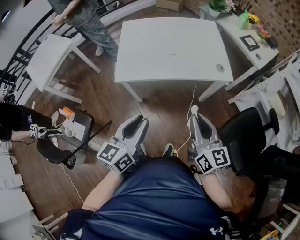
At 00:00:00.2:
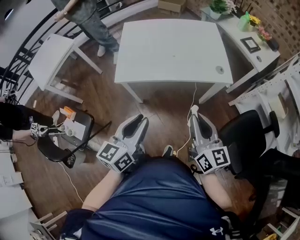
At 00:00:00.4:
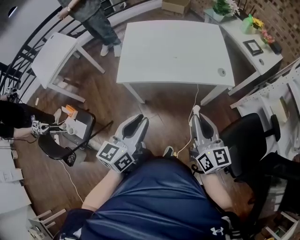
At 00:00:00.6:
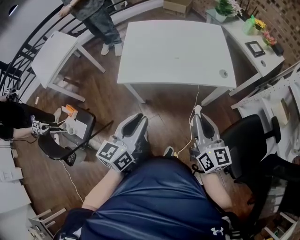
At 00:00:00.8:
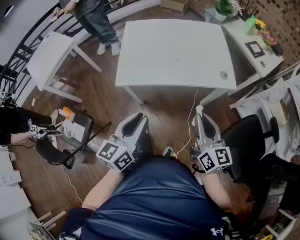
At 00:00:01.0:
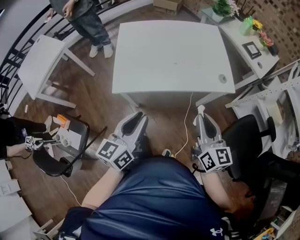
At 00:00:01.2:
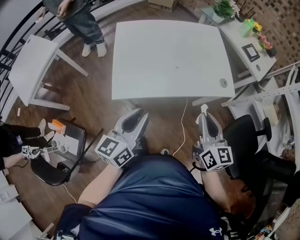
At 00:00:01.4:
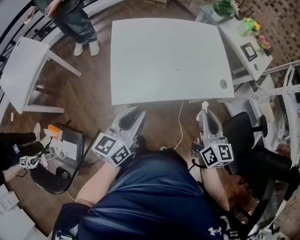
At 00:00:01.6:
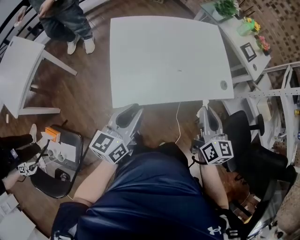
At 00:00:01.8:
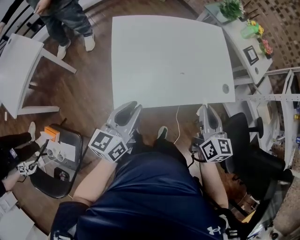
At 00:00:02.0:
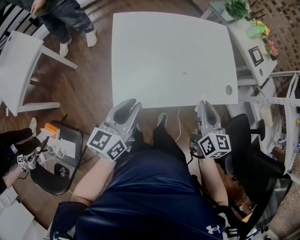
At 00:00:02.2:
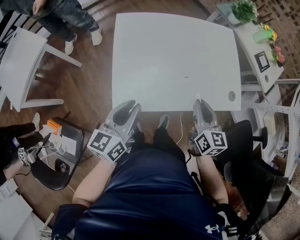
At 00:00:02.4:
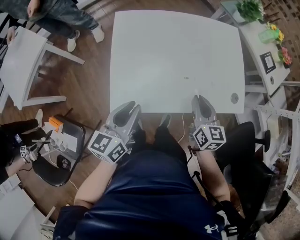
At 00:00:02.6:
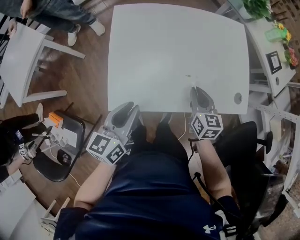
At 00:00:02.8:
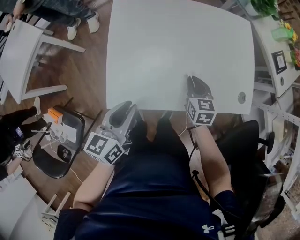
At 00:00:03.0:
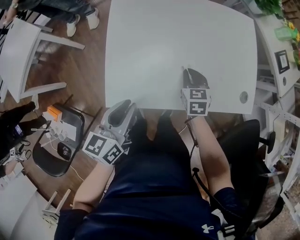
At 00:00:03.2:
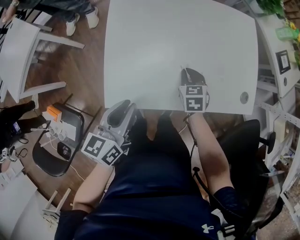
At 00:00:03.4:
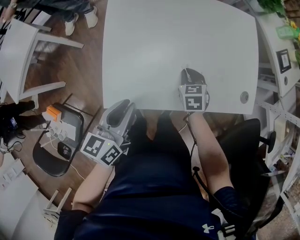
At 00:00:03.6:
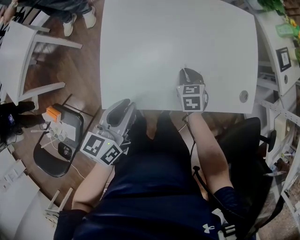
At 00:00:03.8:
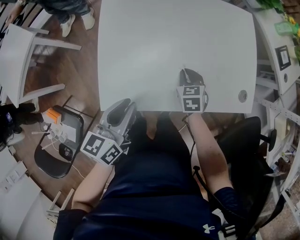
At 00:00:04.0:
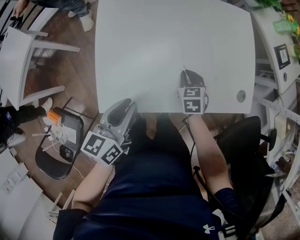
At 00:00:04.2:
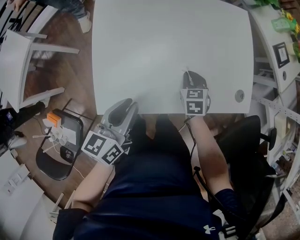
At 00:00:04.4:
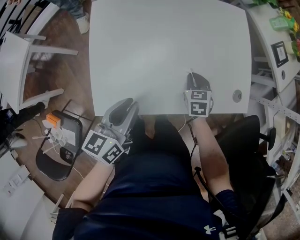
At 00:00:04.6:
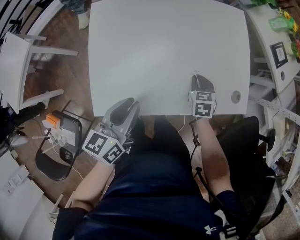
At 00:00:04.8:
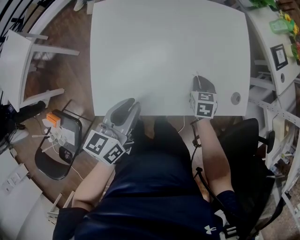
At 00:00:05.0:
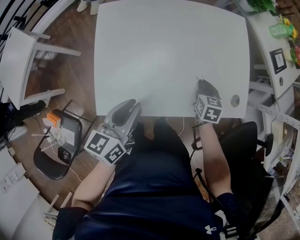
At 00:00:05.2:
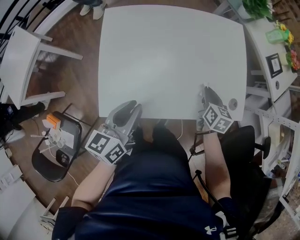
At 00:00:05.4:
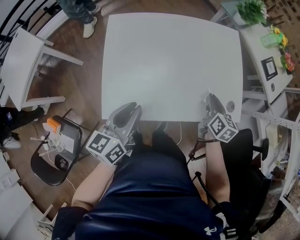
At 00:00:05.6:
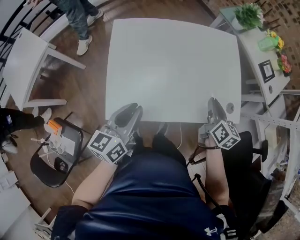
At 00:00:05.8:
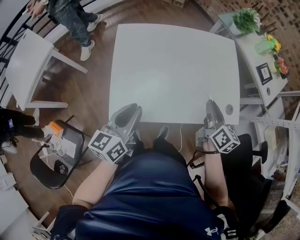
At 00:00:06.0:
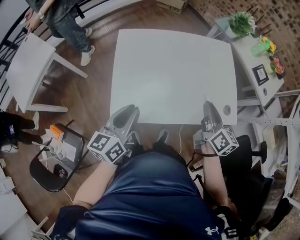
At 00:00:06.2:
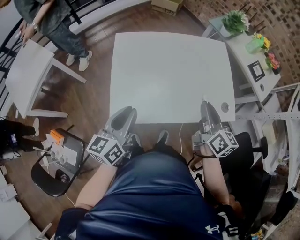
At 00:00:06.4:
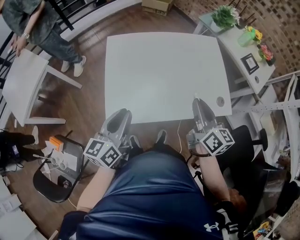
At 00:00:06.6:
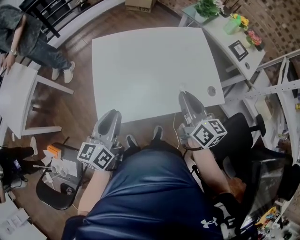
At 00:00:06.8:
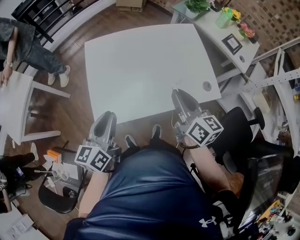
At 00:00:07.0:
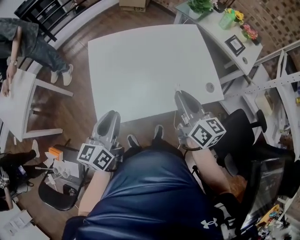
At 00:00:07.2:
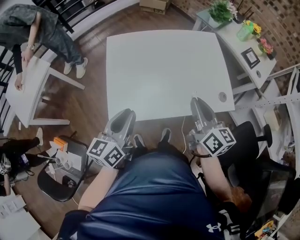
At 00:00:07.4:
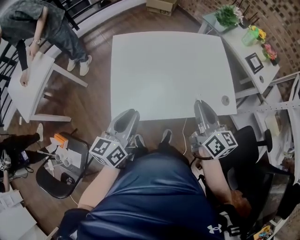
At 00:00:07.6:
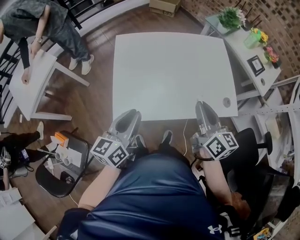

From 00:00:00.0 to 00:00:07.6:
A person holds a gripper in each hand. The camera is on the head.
From 00:00:00.0 to 00:00:01.6: The left gripper travels forward and to the left by some 25 cm. The right gripper travels forward by approximately 20 cm, and swivels roughly 20 degrees.
From 00:00:01.6 to 00:00:03.0: The right gripper moves downward and forward, approximately 30 cm, and tilts its fingers approximately 30 degrees downward; the left gripper goes about 10 cm downward and forward.
From 00:00:03.0 to 00:00:04.6: The right gripper heads to the right, covering approximately 10 cm, while the left gripper heads to the right and forward, covering some 10 cm.
From 00:00:04.6 to 00:00:06.0: The right gripper is displaced upward by some 25 cm, and tips its fingers upward by about 40 degrees; the left gripper is displaced upward, to the left and backward by about 10 cm.
From 00:00:06.0 to 00:00:07.6: The right gripper heads backward, covering some 5 cm.

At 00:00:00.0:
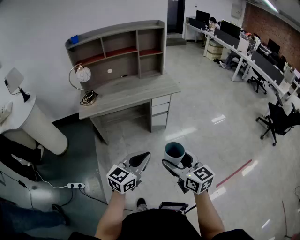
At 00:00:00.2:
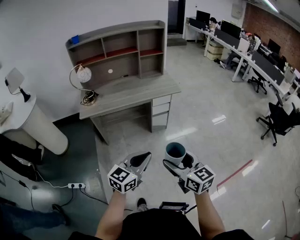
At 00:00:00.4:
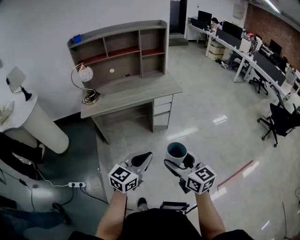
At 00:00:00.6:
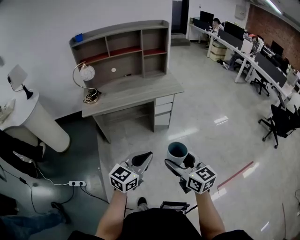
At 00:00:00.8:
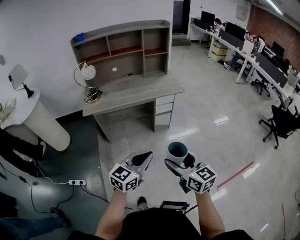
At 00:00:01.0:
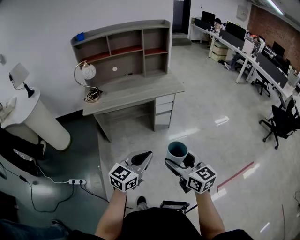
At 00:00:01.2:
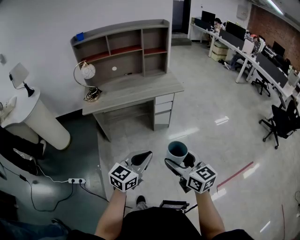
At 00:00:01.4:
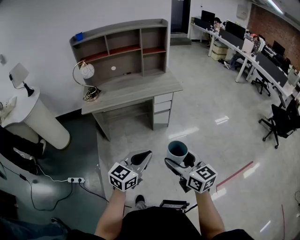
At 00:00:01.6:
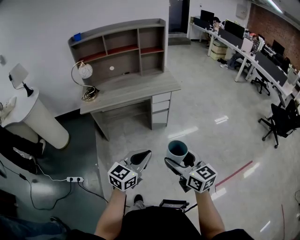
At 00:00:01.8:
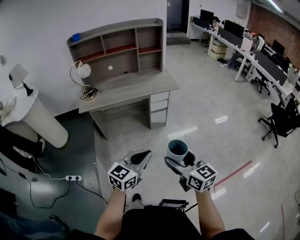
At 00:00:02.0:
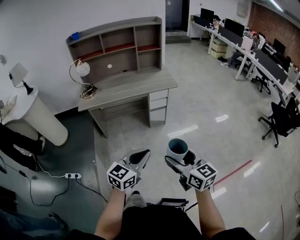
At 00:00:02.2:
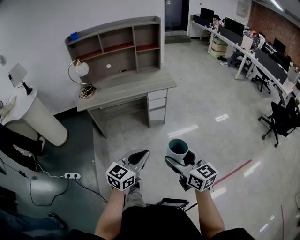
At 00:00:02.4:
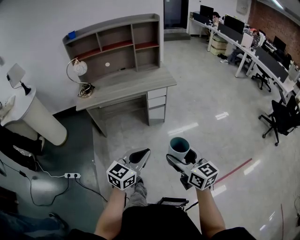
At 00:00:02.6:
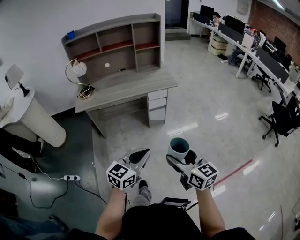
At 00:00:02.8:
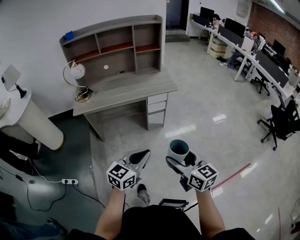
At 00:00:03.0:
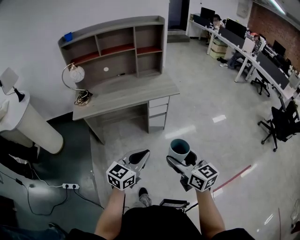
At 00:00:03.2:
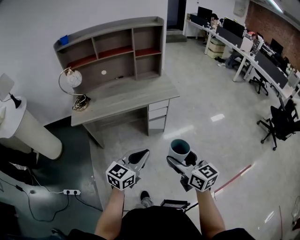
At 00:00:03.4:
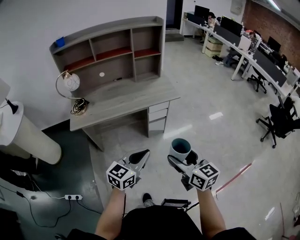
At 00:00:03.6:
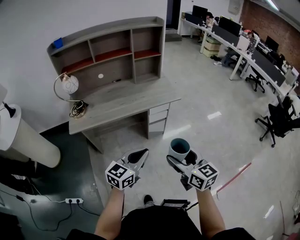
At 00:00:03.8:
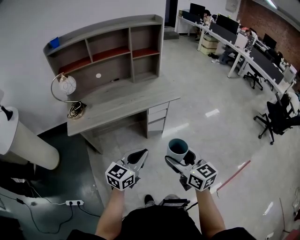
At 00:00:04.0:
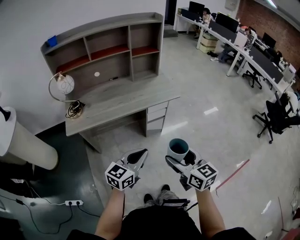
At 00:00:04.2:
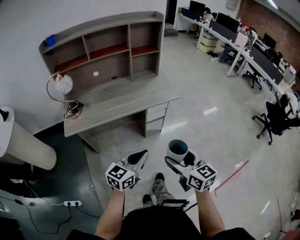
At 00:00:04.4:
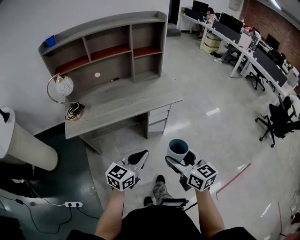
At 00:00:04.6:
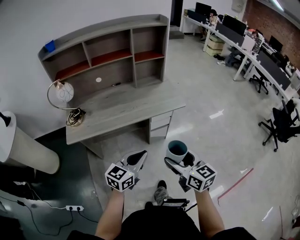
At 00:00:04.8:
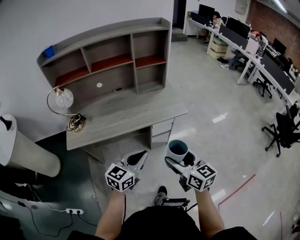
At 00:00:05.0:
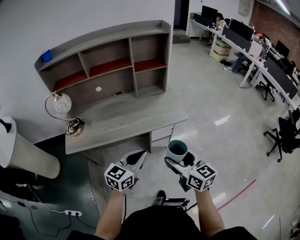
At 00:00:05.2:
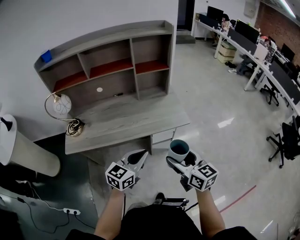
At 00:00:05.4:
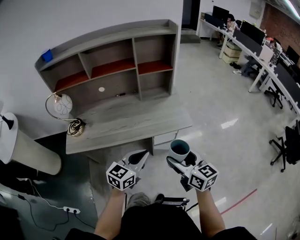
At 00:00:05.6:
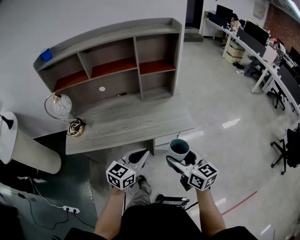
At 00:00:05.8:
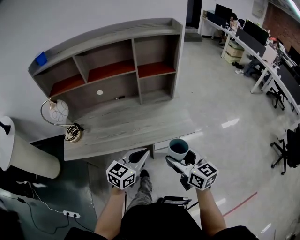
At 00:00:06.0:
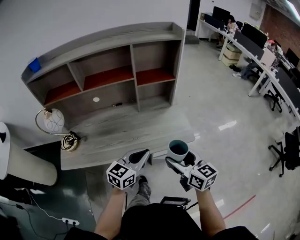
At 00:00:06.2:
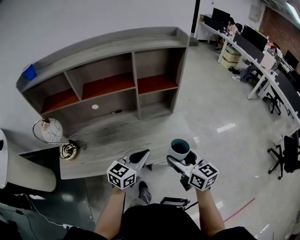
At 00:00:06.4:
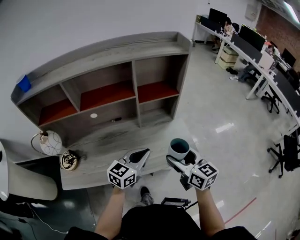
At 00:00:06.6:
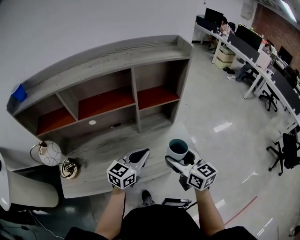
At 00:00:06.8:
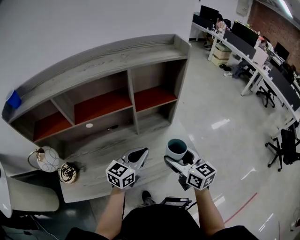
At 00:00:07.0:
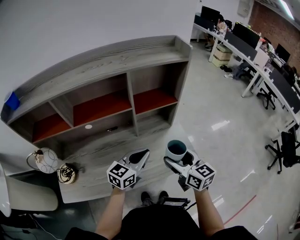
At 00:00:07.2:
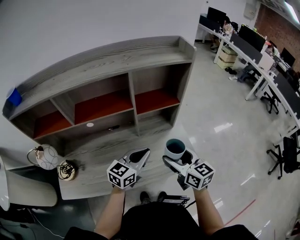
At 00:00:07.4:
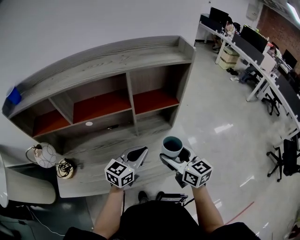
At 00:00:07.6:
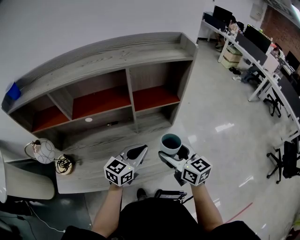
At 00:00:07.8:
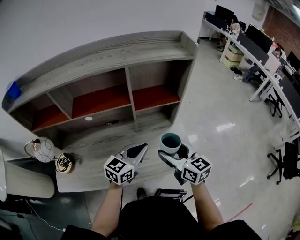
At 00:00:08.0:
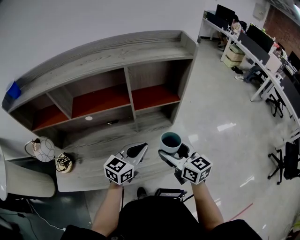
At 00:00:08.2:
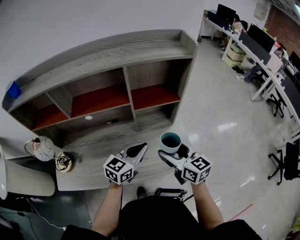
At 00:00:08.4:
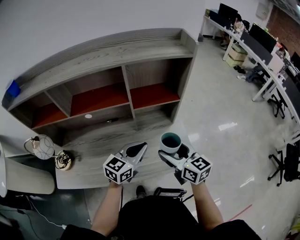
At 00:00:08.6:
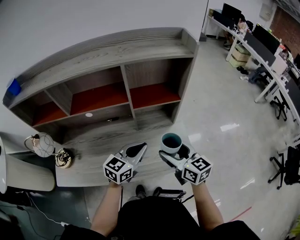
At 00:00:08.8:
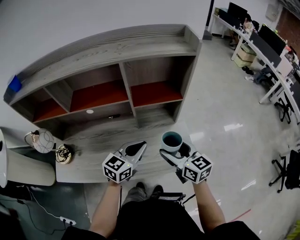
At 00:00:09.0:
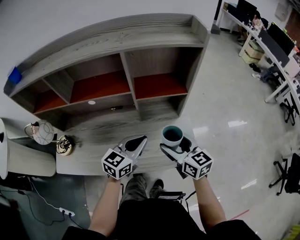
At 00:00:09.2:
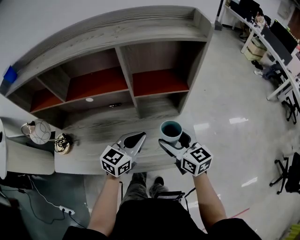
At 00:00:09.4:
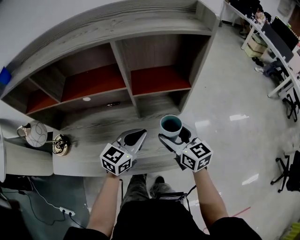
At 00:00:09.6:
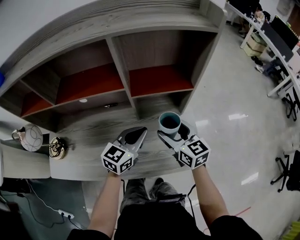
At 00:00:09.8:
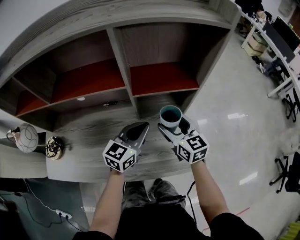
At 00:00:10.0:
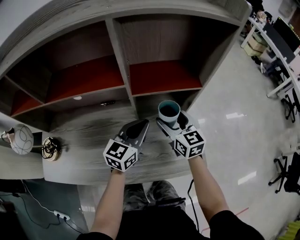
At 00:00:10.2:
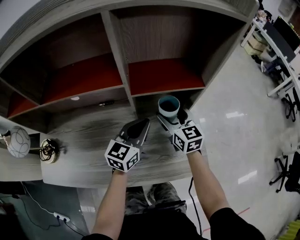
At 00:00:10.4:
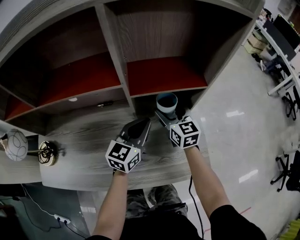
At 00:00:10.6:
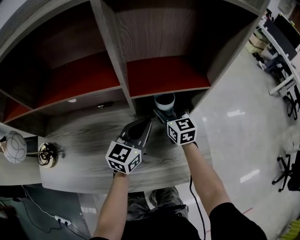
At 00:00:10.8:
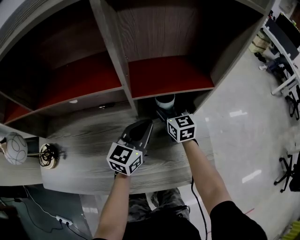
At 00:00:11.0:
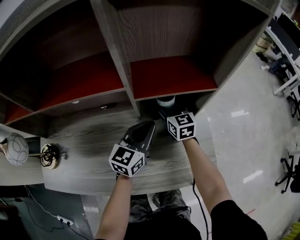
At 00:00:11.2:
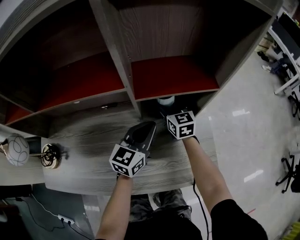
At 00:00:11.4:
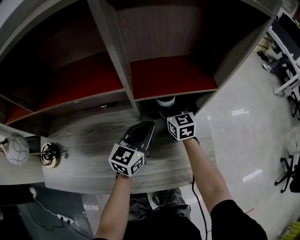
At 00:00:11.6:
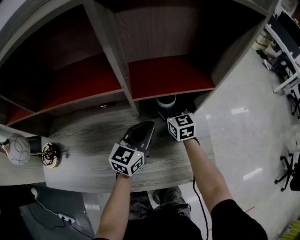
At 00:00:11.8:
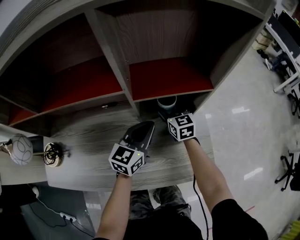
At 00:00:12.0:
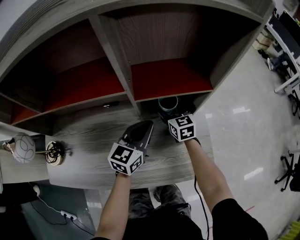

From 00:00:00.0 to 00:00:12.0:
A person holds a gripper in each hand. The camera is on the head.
From 00:00:00.0 to 00:00:01.6: The grippers move only a little.
From 00:00:01.6 to 00:00:03.0: Both grippers travel together forward, some 10 cm.
From 00:00:03.0 to 00:00:04.4: Both grippers travel together forward and to the left, approximately 15 cm.
From 00:00:04.4 to 00:00:06.0: Both grippers move forward, about 30 cm.
From 00:00:06.0 to 00:00:07.6: Both grippers travel together forward, approximately 20 cm.
From 00:00:07.6 to 00:00:09.0: The right gripper moves roughly 5 cm.
From 00:00:09.0 to 00:00:10.4: The left gripper is displaced forward and downward by roughly 15 cm. Meanwhile the right gripper is displaced forward and downward by about 25 cm.
From 00:00:10.4 to 00:00:12.0: The right gripper is displaced downward by roughly 5 cm.

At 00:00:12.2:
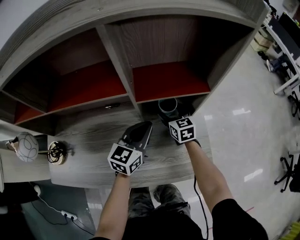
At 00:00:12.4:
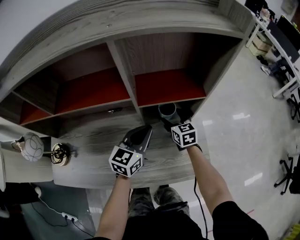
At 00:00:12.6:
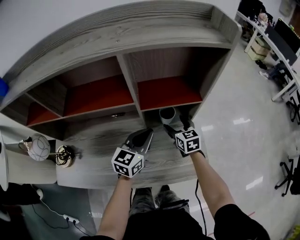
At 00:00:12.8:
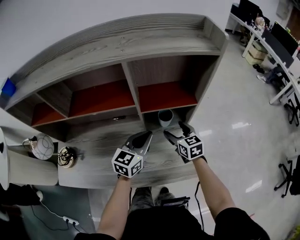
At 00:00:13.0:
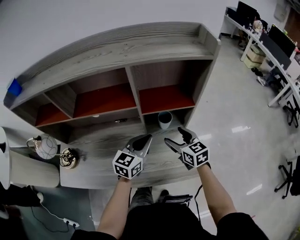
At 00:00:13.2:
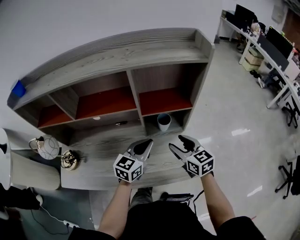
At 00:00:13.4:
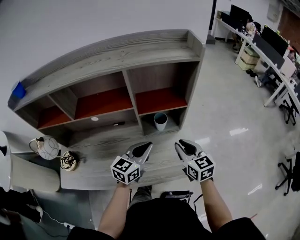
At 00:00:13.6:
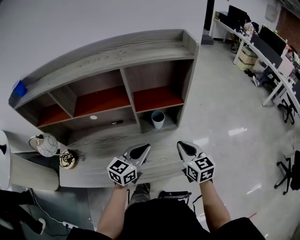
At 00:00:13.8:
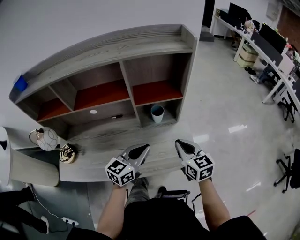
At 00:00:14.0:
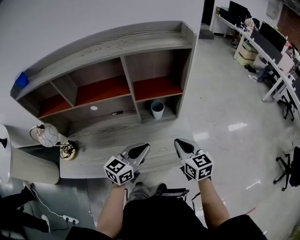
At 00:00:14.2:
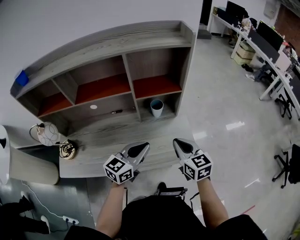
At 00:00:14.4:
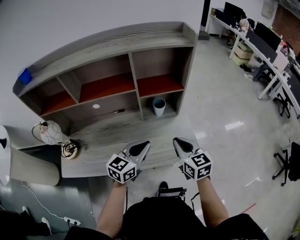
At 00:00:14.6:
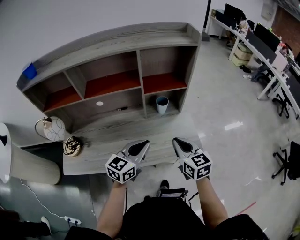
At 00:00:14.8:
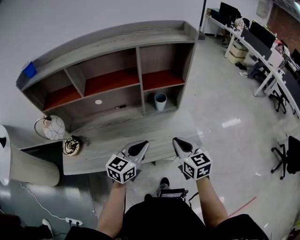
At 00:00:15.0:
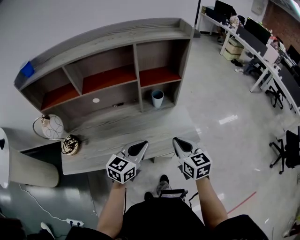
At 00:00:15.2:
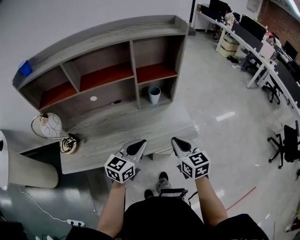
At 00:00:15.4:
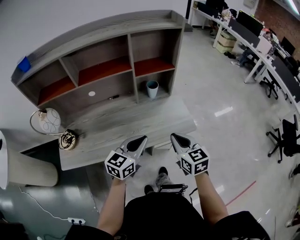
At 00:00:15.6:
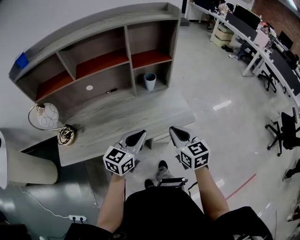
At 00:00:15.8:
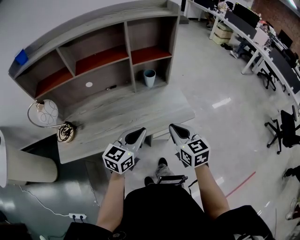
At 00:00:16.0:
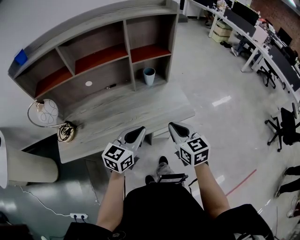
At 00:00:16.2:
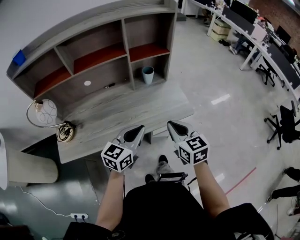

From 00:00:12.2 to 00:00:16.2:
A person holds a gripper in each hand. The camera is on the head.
From 00:00:12.2 to 00:00:13.6: The right gripper is displaced backward, upward and to the right by some 30 cm, and closes up. The left gripper shifts approximately 15 cm backward and upward.
From 00:00:13.6 to 00:00:14.8: The left gripper moves backward, approximately 10 cm. The right gripper goes some 15 cm backward and to the left.
From 00:00:14.8 to 00:00:16.2: Both grippers travel together backward, roughly 10 cm.
